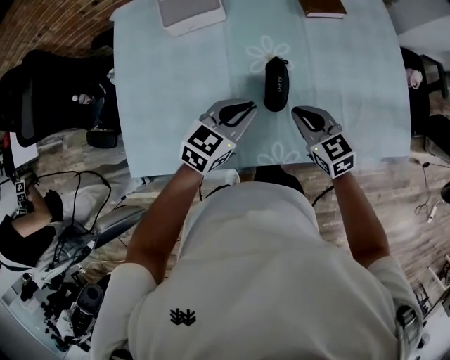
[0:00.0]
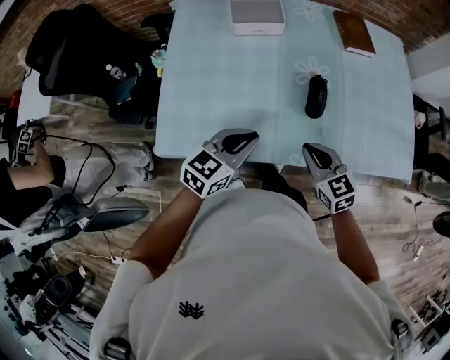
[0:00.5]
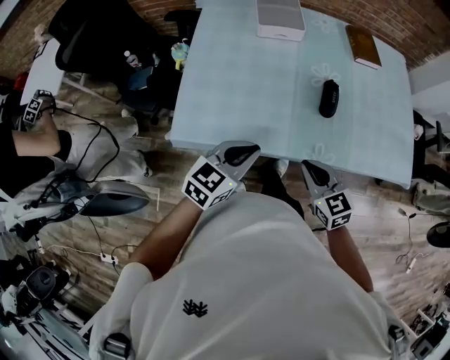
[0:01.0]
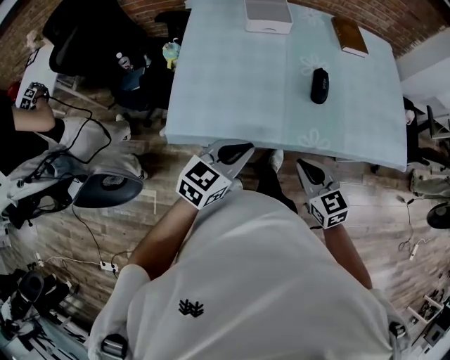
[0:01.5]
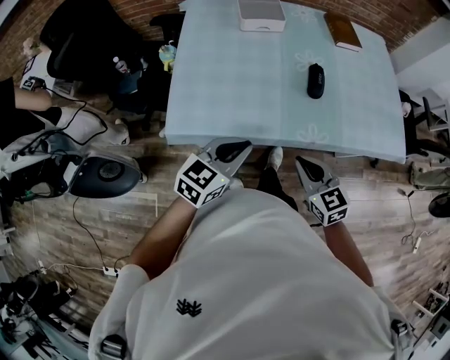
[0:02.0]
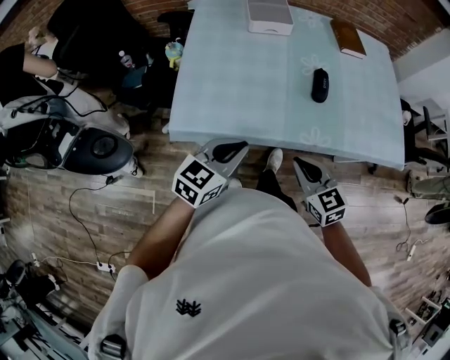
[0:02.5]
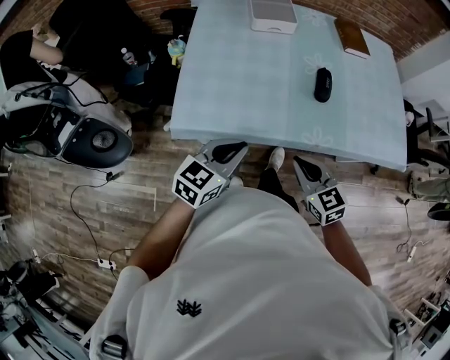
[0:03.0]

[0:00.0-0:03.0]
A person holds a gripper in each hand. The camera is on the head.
0:00.0 to 0:01.5: The grippers both shift backward and to the left by some 35 cm.
0:01.5 to 0:03.0: The grippers move only a little.

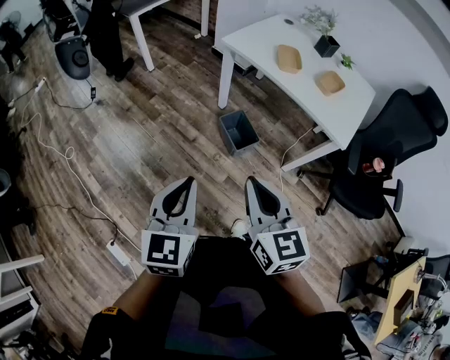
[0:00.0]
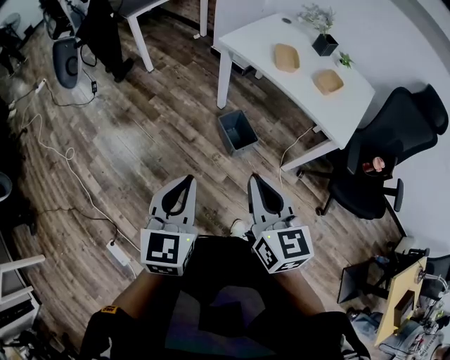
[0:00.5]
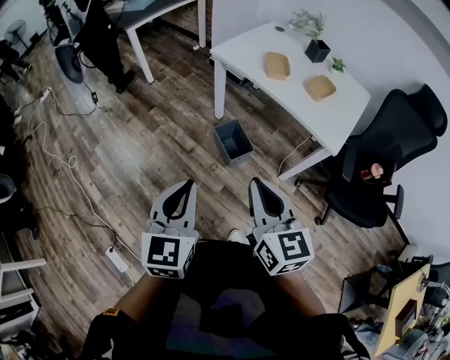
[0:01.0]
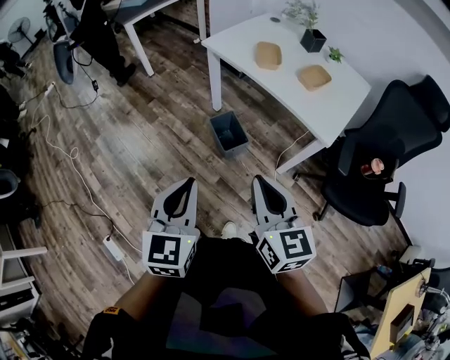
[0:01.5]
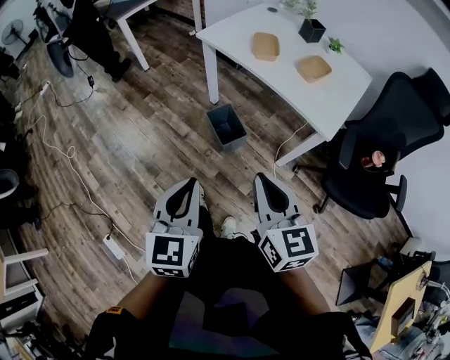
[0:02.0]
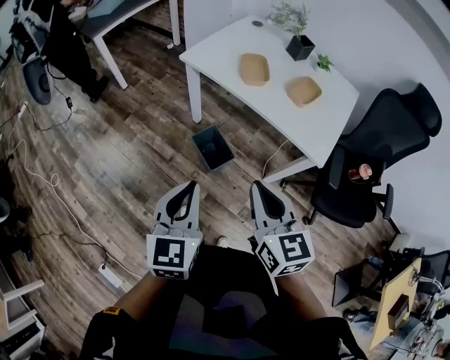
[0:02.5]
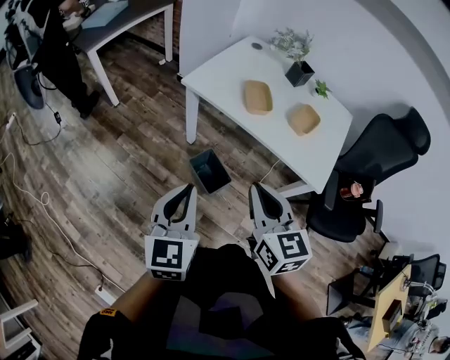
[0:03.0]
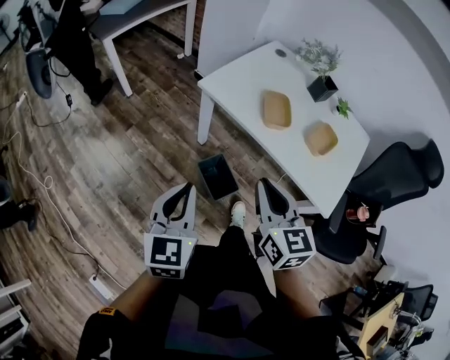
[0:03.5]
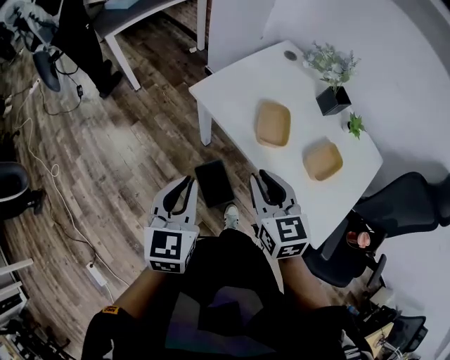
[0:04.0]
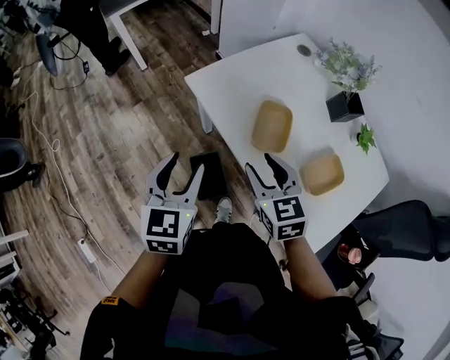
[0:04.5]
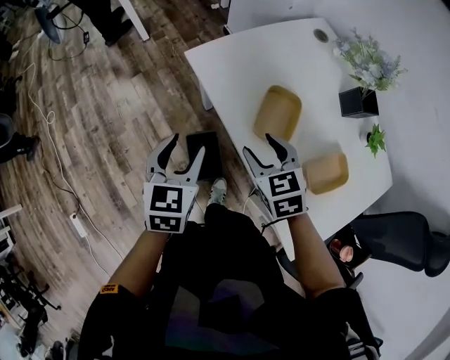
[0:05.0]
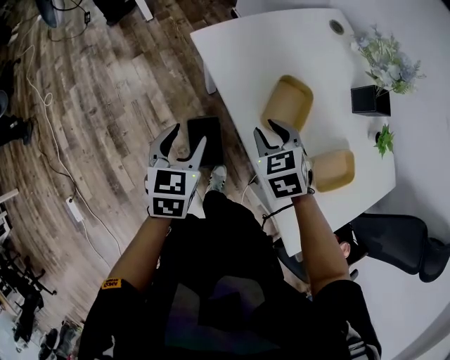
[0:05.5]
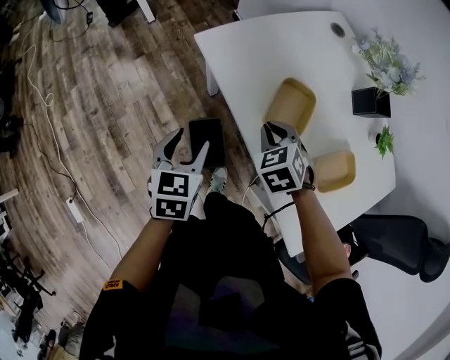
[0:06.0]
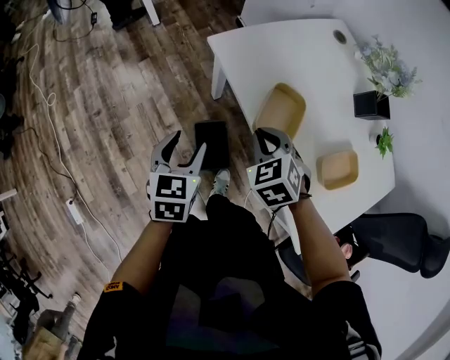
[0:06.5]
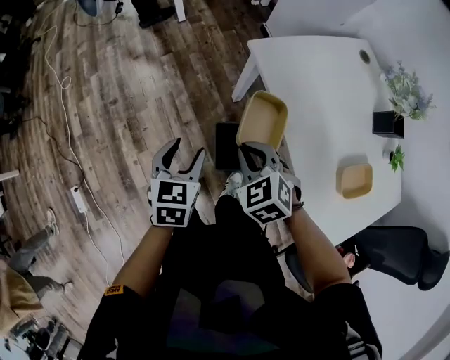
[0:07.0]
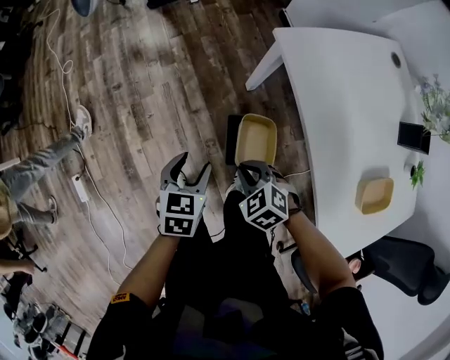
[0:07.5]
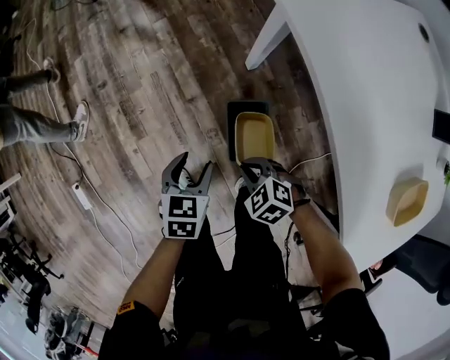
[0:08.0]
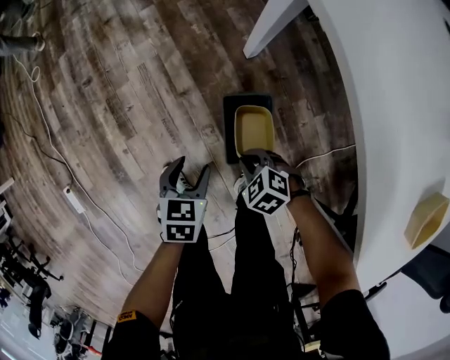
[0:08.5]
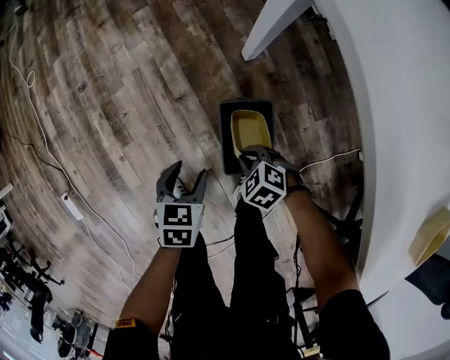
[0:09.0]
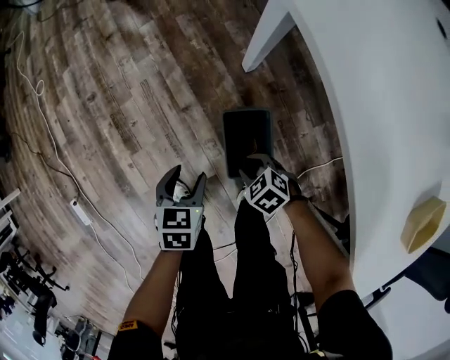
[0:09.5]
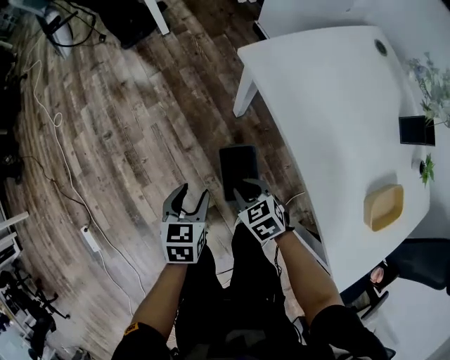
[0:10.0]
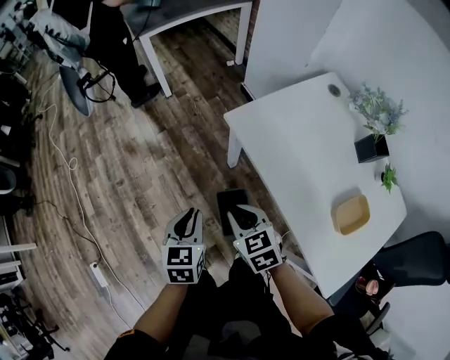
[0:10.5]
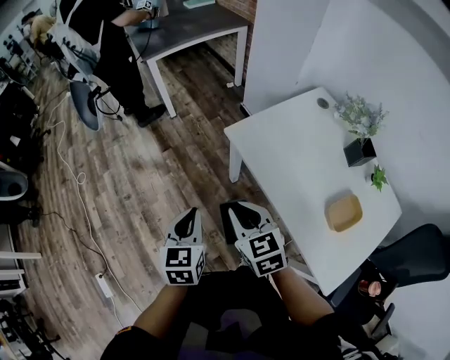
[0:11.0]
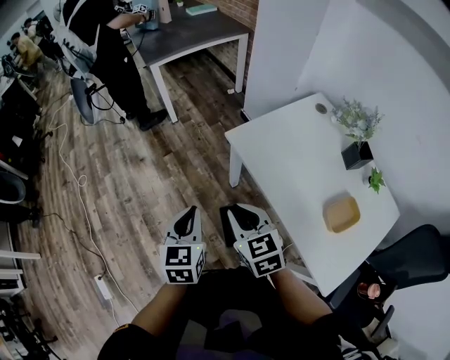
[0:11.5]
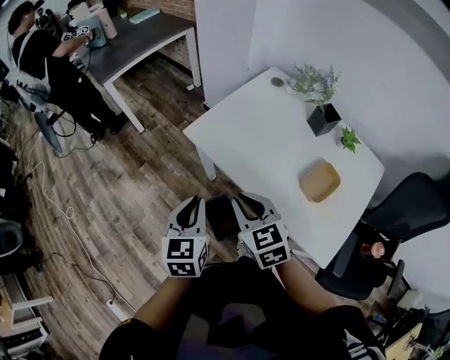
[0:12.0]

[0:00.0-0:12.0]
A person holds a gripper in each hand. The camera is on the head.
0:00.0 to 0:02.0: Both grippers travel together to the right, some 15 cm.
0:02.0 to 0:04.0: The two grippers travel together, forward, about 40 cm.
0:04.0 to 0:06.0: The two grippers go roughly 20 cm downward and forward. The right gripper angles its fingers downward, by about 30 degrees, and opens, then closes once more; the left gripper swivels some 20 degrees, and opens.
0:06.0 to 0:08.0: The two grippers go roughly 25 cm downward. The right gripper turns by roughly 40 degrees.
0:08.0 to 0:10.0: The right gripper travels forward by some 5 cm, reaches approximately 15 cm downward, then returns, and swivels approximately 30 degrees, while the left gripper reaches some 15 cm downward, then returns.
0:10.0 to 0:12.0: The left gripper goes some 30 cm upward and to the right, swivels roughly 30 degrees, and closes up. The right gripper is displaced upward by about 35 cm, and turns by roughly 40 degrees.

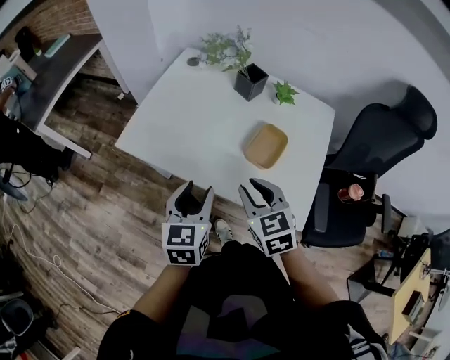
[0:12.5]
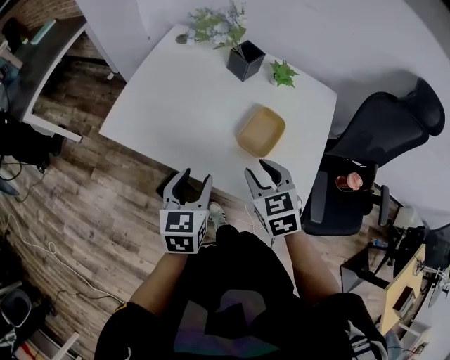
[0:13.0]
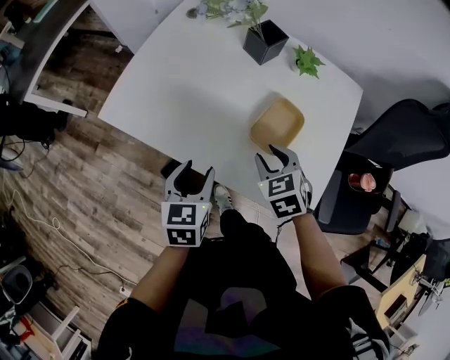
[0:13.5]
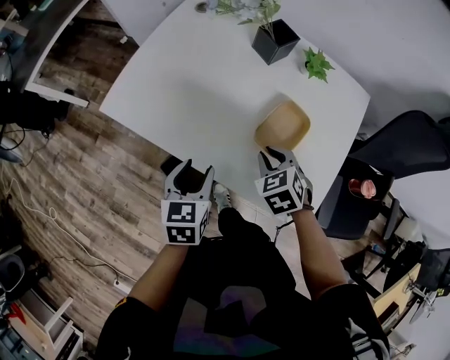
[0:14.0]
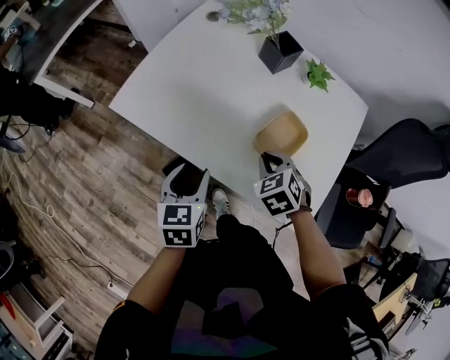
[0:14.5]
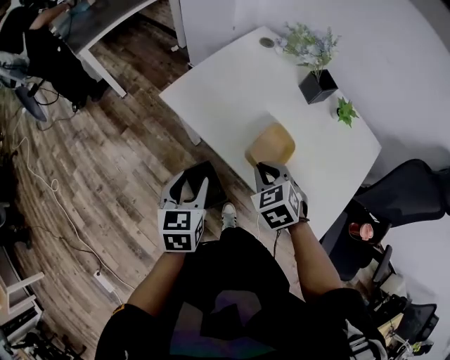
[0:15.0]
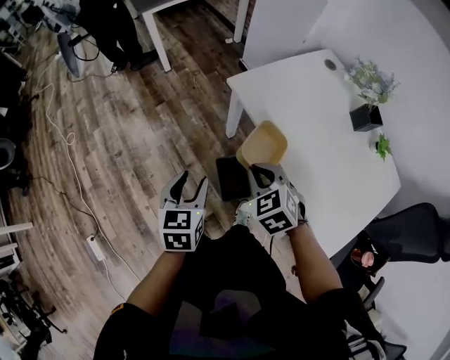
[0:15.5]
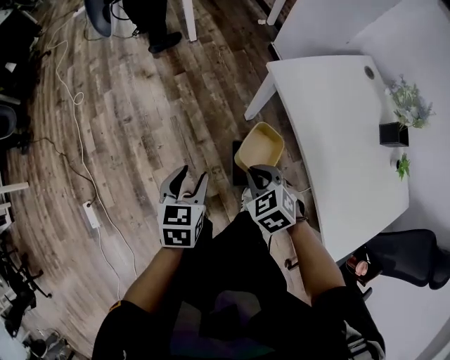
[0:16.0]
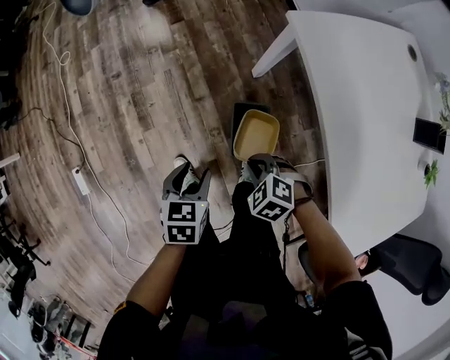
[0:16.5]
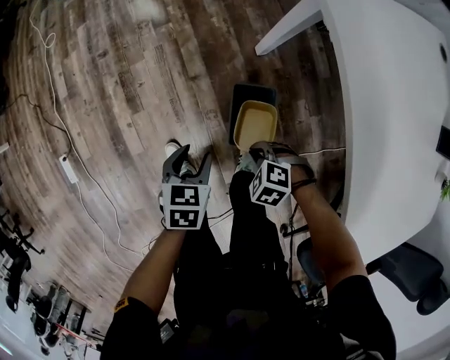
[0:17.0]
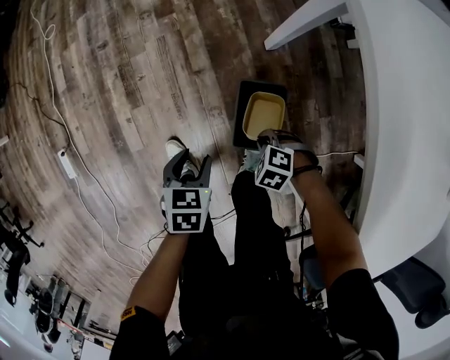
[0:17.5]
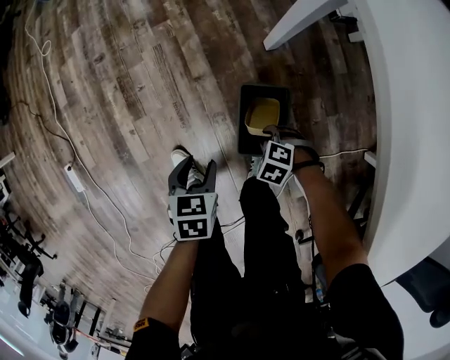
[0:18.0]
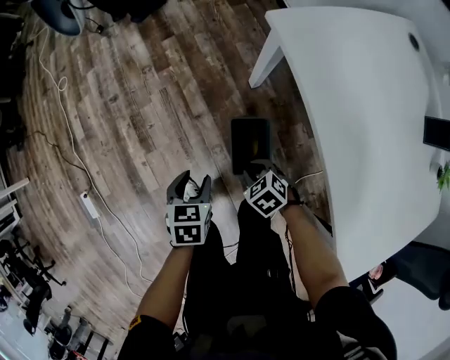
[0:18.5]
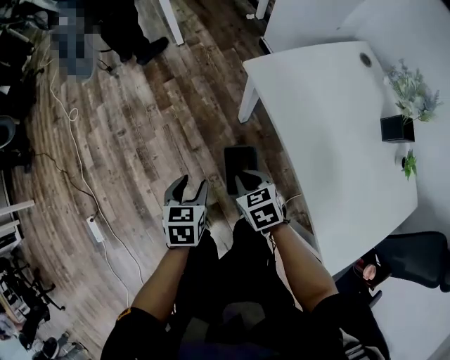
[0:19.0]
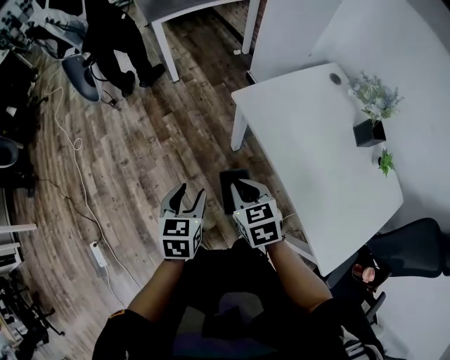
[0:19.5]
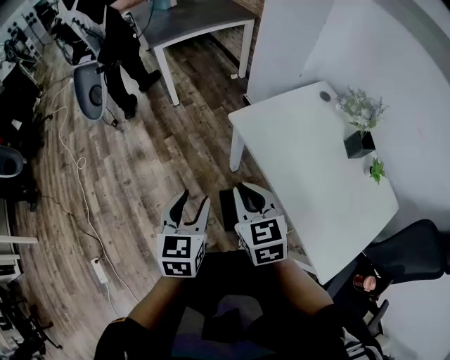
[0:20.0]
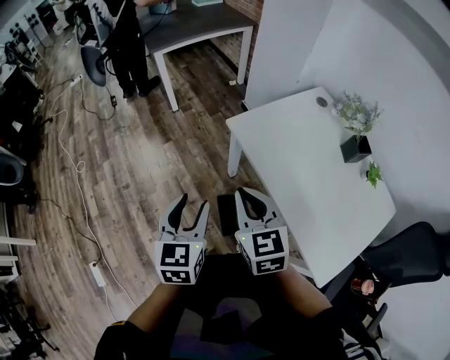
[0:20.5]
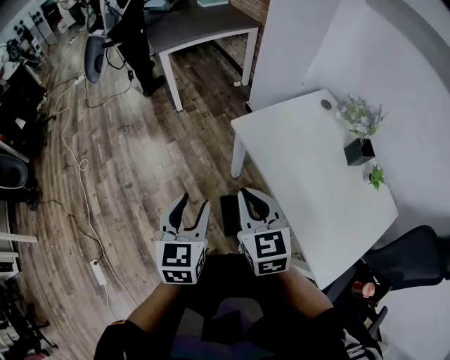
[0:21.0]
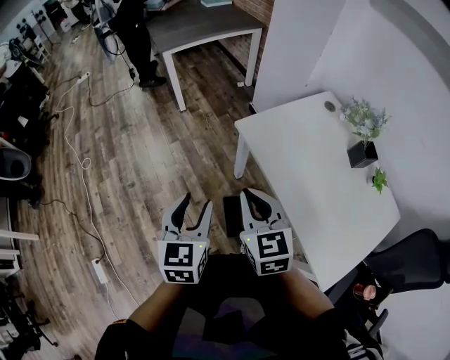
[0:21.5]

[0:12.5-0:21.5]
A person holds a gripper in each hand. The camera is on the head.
0:12.5 to 0:14.5: The right gripper shifts some 15 cm downward and forward, and changes its angle by approximately 30 degrees, while the left gripper is displaced downward by roughly 10 cm.
0:14.5 to 0:17.0: The right gripper changes place by approximately 50 cm, and rolls counterclockwise, seen from behind, by some 70 degrees; the left gripper shifts by some 40 cm, and changes its angle by approximately 40 degrees.
0:17.0 to 0:19.5: The grippers both shift upward by some 35 cm. The left gripper changes its angle by roughly 20 degrees. The right gripper tips its fingers upward by some 40 degrees, and opens and closes again.
0:19.5 to 0:21.5: Both grippers travel together upward, some 15 cm. The right gripper changes its angle by approximately 20 degrees.

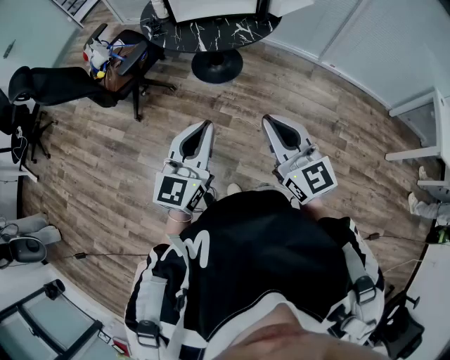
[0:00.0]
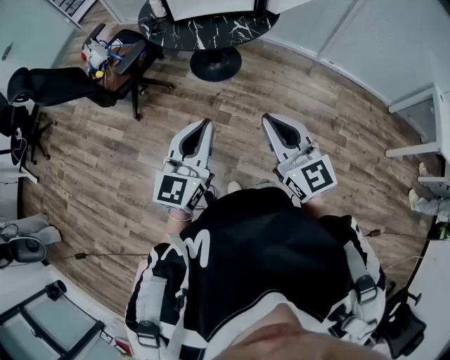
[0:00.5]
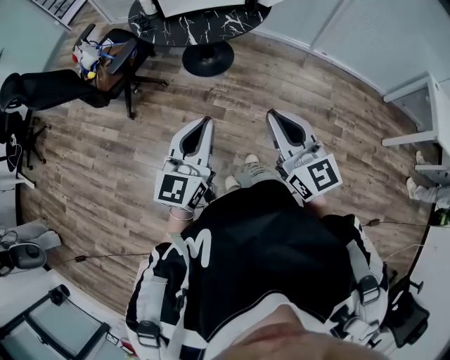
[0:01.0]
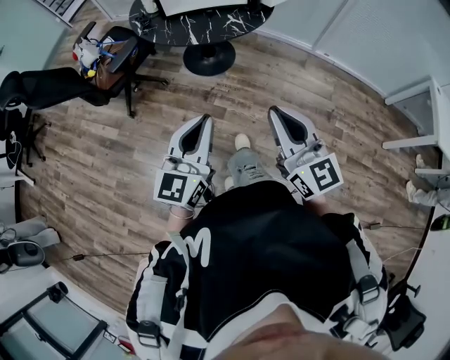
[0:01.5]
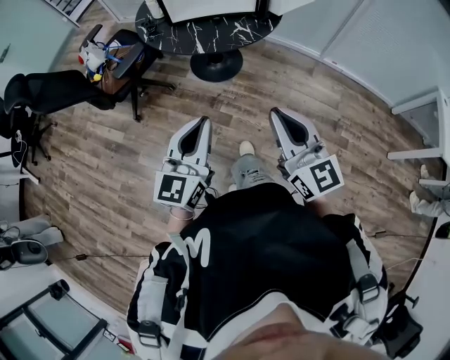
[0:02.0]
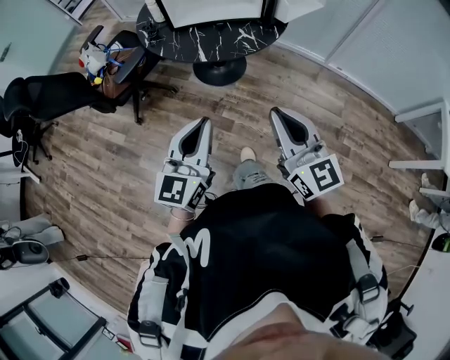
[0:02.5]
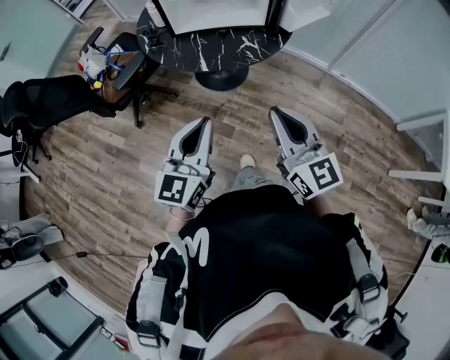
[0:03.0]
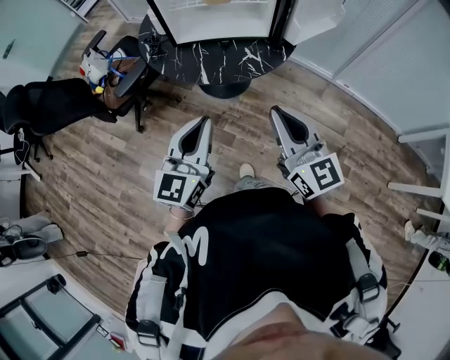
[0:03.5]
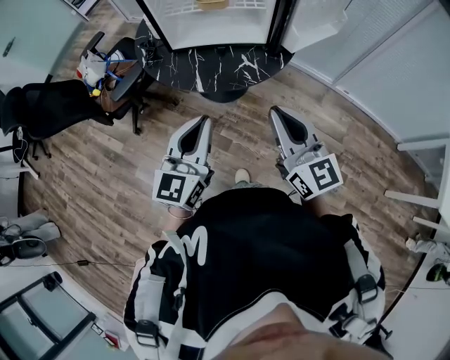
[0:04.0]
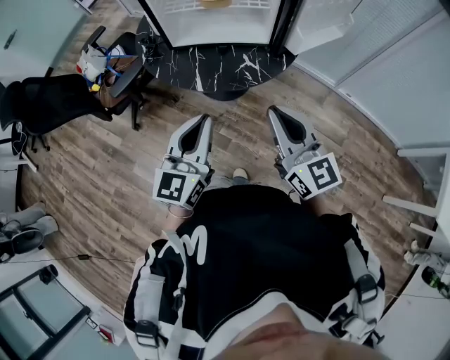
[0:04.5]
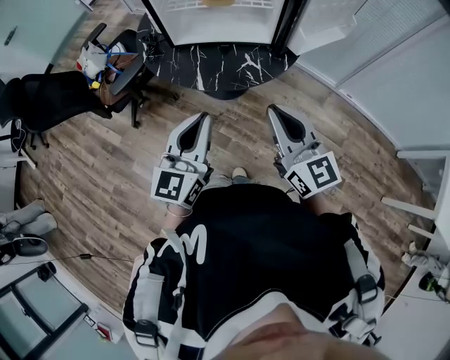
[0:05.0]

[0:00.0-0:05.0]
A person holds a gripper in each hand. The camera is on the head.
0:00.0 to 0:02.5: Both grippers travel together forward, approximately 10 cm.
0:02.5 to 0:05.0: Both grippers travel together forward, approximately 20 cm.
